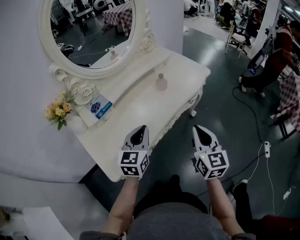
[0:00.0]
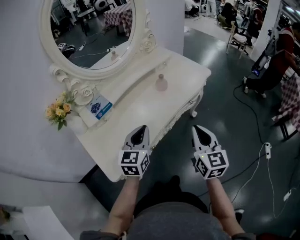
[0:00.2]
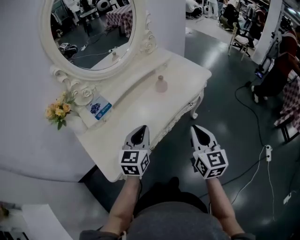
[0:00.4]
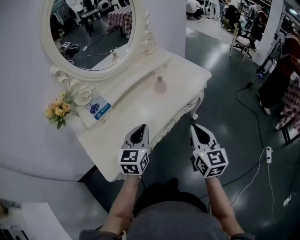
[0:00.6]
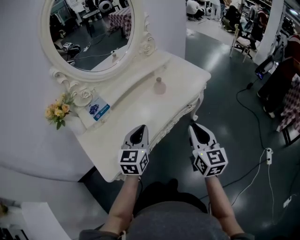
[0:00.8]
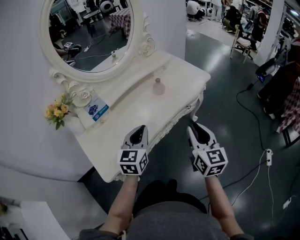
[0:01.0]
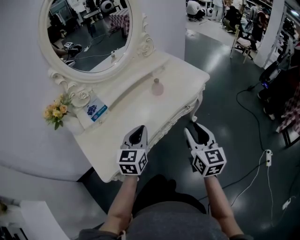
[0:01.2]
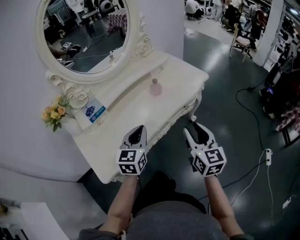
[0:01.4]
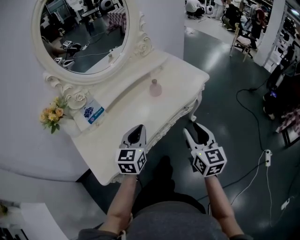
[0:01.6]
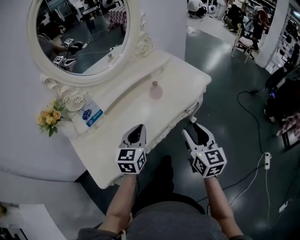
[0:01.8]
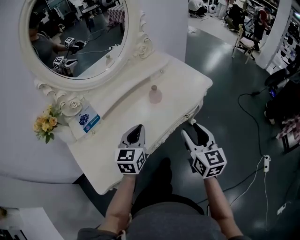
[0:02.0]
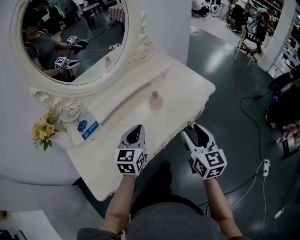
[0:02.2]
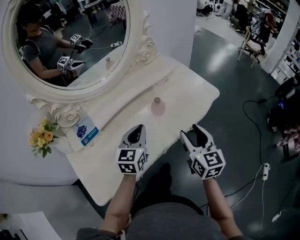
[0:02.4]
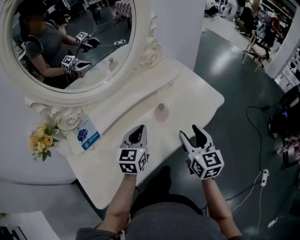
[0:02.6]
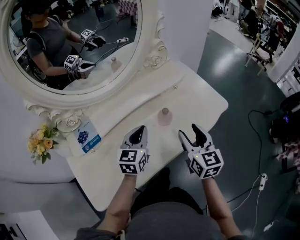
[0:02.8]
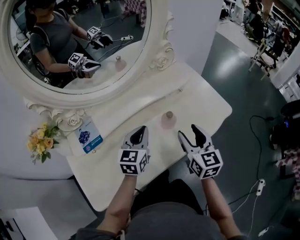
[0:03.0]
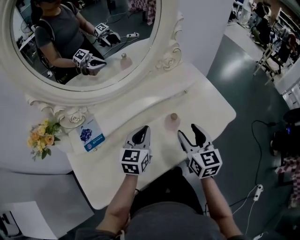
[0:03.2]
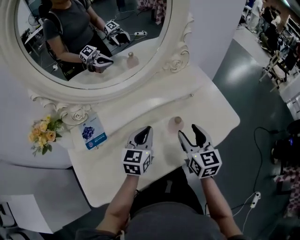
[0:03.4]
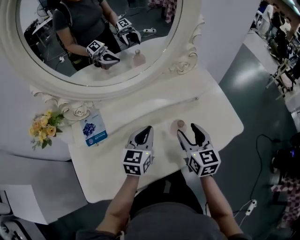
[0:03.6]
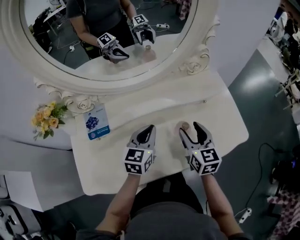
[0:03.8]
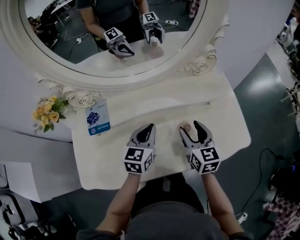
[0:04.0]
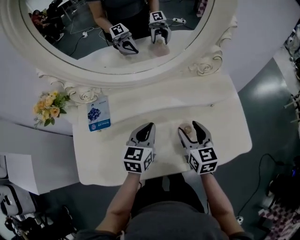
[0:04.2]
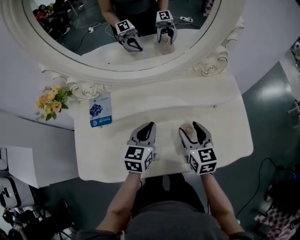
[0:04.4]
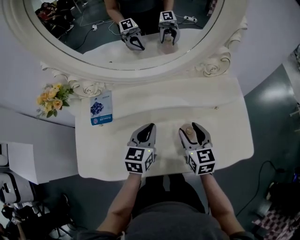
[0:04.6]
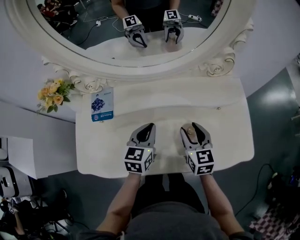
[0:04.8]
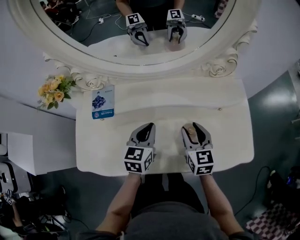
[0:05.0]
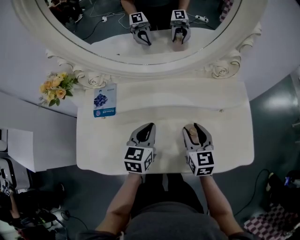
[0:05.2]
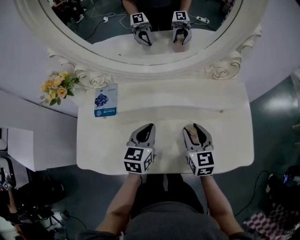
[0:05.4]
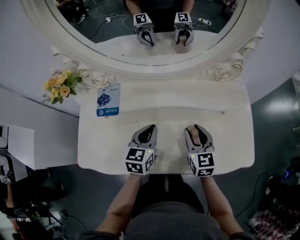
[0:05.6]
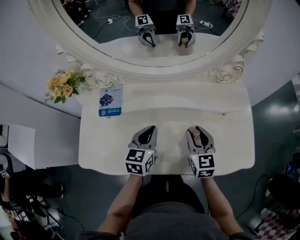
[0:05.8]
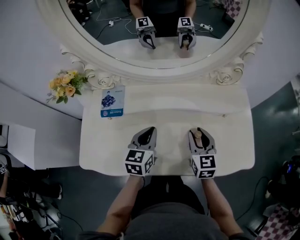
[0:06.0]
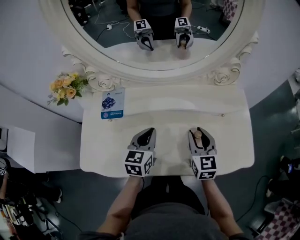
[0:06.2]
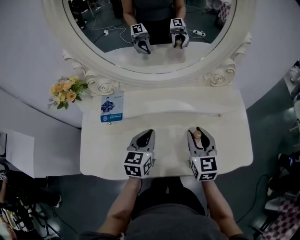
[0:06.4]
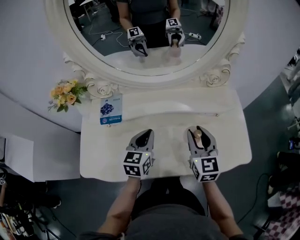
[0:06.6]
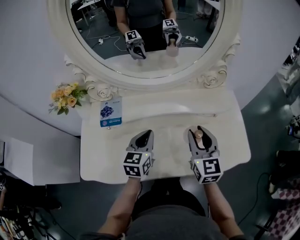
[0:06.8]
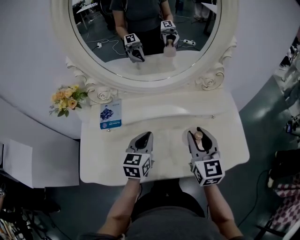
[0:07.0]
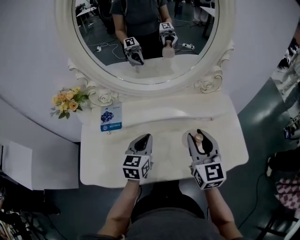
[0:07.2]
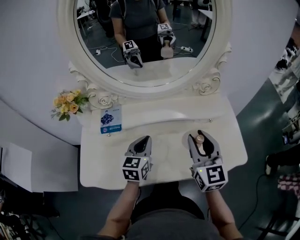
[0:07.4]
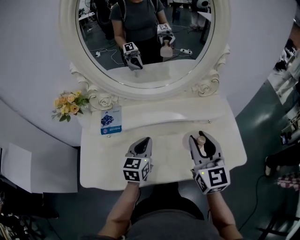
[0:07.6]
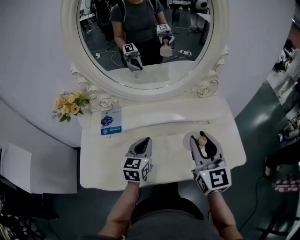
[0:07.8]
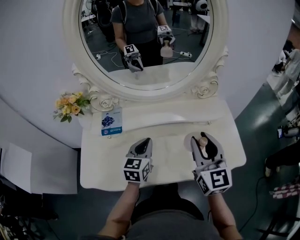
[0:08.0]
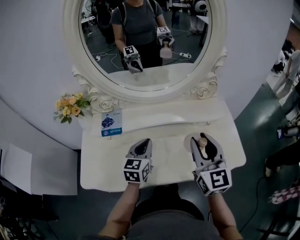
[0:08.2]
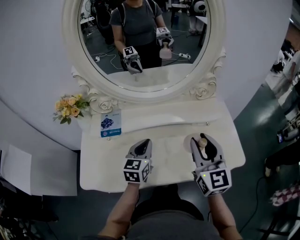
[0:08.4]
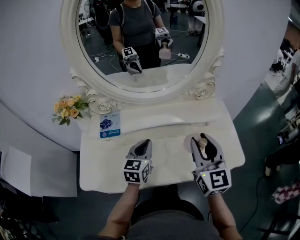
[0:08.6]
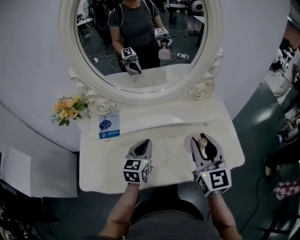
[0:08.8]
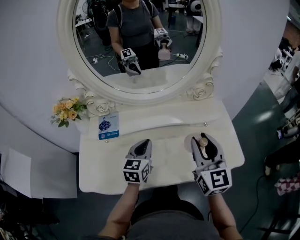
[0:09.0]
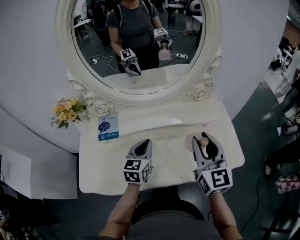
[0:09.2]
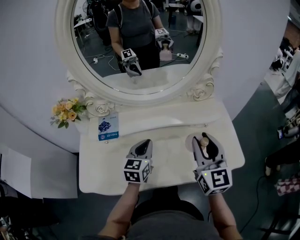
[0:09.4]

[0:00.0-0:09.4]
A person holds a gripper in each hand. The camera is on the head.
0:00.0 to 0:01.6: The right gripper shifts by some 5 cm, and opens up, while the left gripper shifts by approximately 5 cm.
0:01.6 to 0:03.2: The two grippers go roughly 25 cm forward.
0:03.2 to 0:04.8: The left gripper changes place by approximately 5 cm, and changes its angle by roughly 30 degrees. Meanwhile the right gripper shifts by roughly 15 cm, and turns by some 30 degrees.
0:04.8 to 0:06.2: The grippers move only a little.
0:06.2 to 0:07.8: The right gripper is displaced upward by approximately 15 cm.
0:07.8 to 0:09.4: The grippers move only a little.

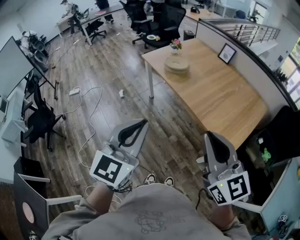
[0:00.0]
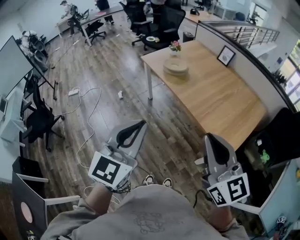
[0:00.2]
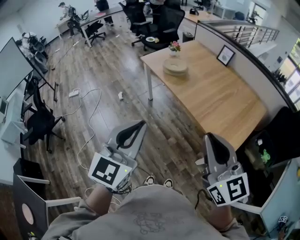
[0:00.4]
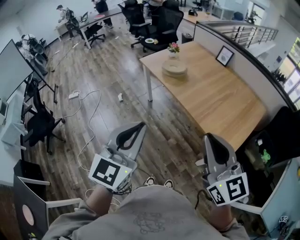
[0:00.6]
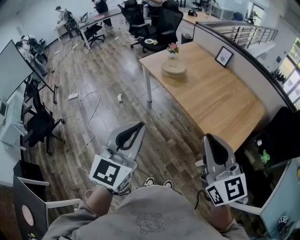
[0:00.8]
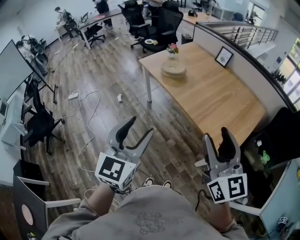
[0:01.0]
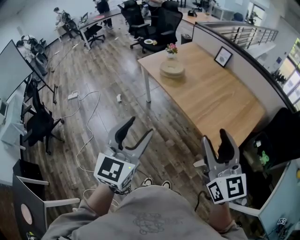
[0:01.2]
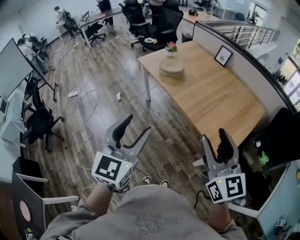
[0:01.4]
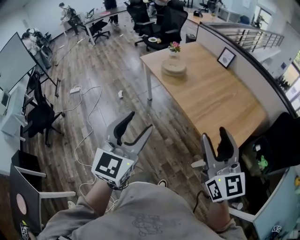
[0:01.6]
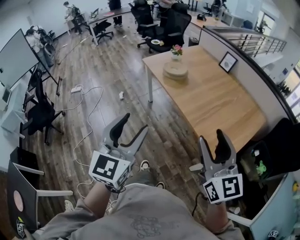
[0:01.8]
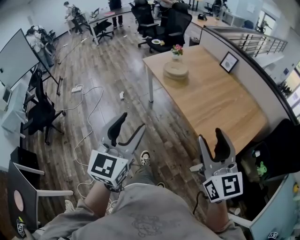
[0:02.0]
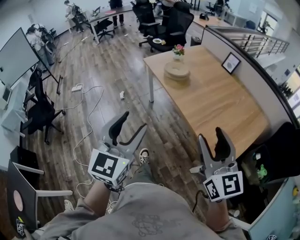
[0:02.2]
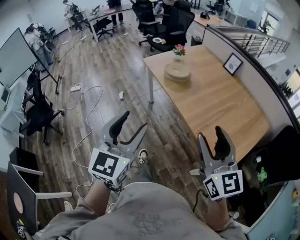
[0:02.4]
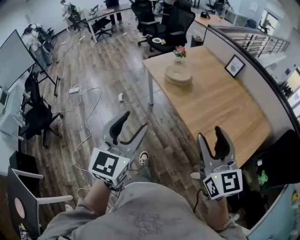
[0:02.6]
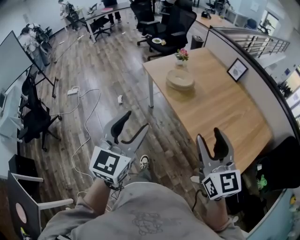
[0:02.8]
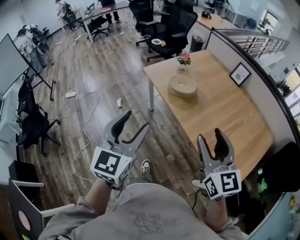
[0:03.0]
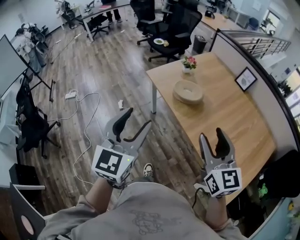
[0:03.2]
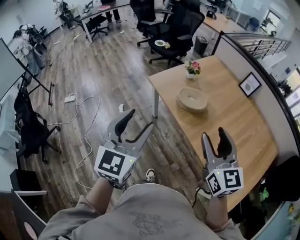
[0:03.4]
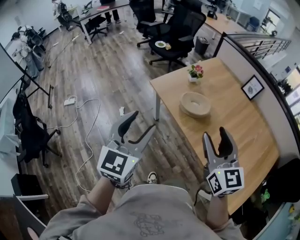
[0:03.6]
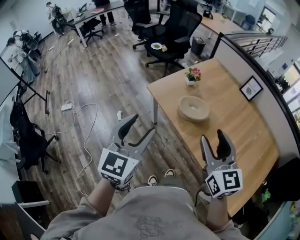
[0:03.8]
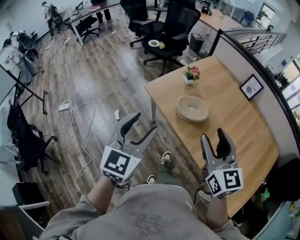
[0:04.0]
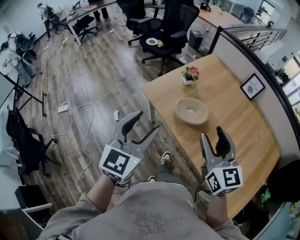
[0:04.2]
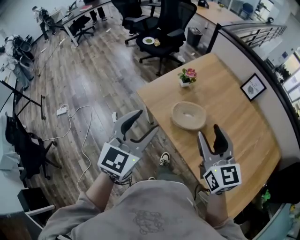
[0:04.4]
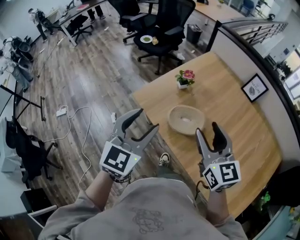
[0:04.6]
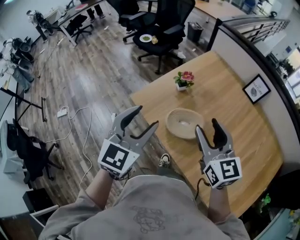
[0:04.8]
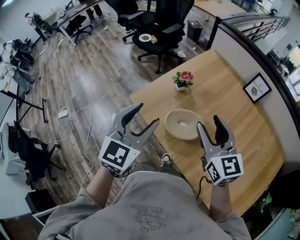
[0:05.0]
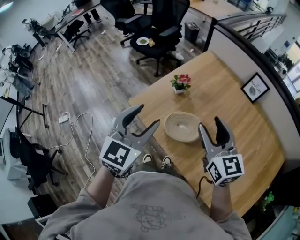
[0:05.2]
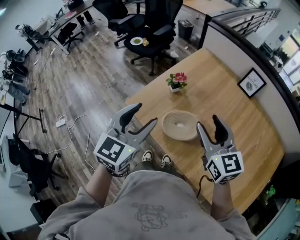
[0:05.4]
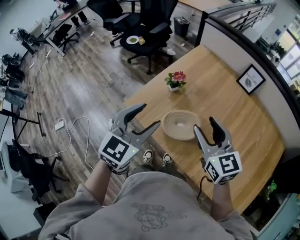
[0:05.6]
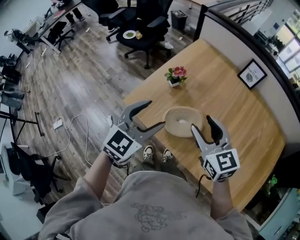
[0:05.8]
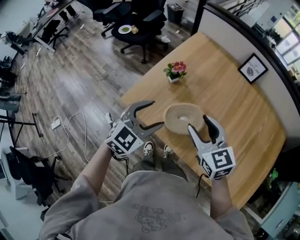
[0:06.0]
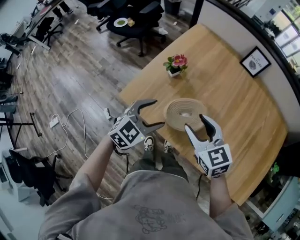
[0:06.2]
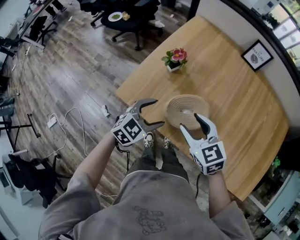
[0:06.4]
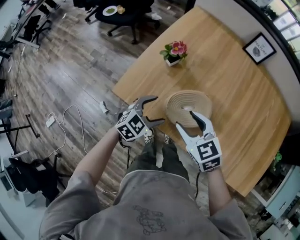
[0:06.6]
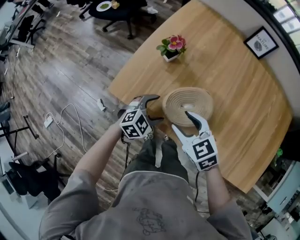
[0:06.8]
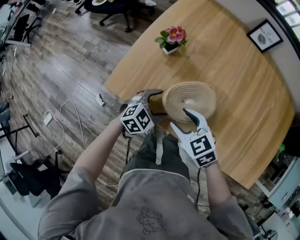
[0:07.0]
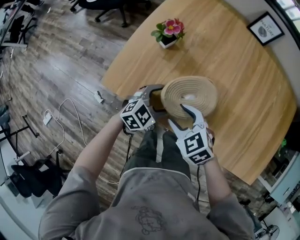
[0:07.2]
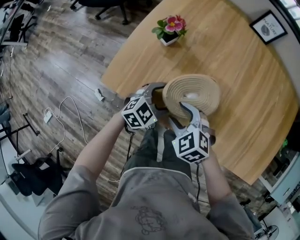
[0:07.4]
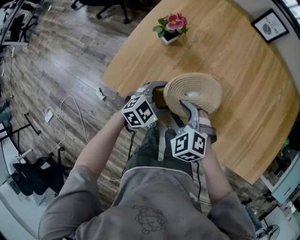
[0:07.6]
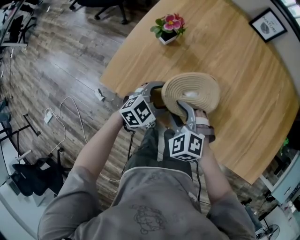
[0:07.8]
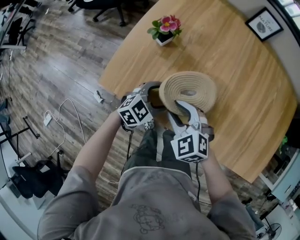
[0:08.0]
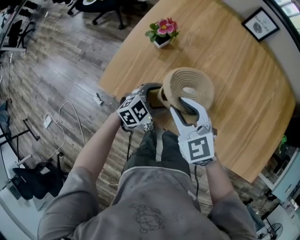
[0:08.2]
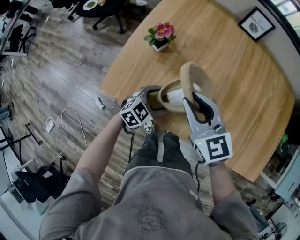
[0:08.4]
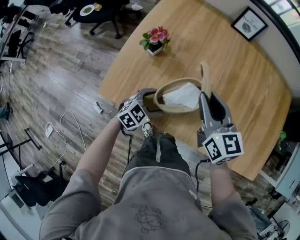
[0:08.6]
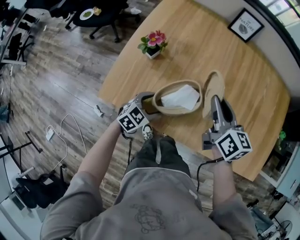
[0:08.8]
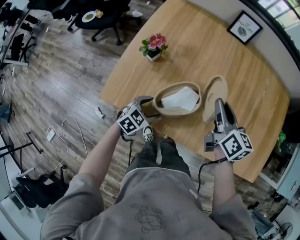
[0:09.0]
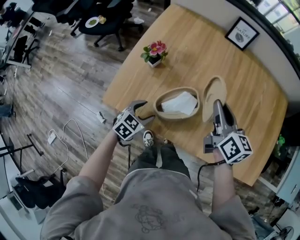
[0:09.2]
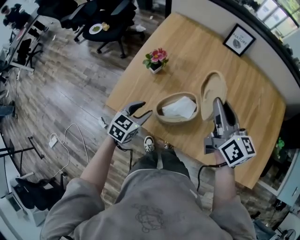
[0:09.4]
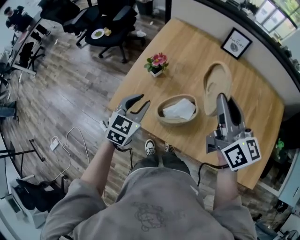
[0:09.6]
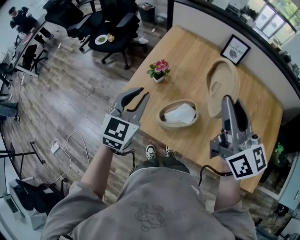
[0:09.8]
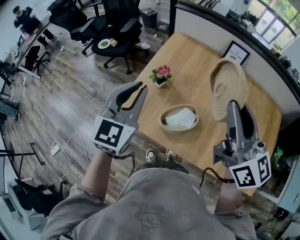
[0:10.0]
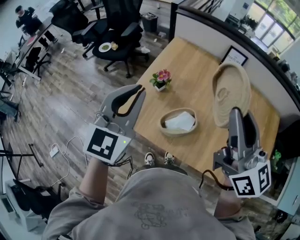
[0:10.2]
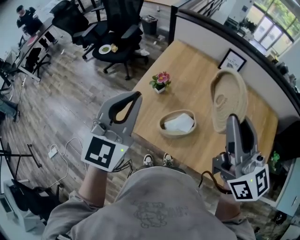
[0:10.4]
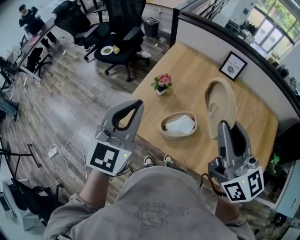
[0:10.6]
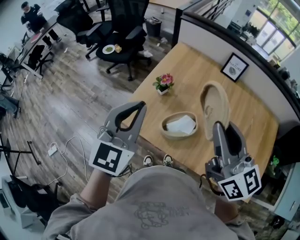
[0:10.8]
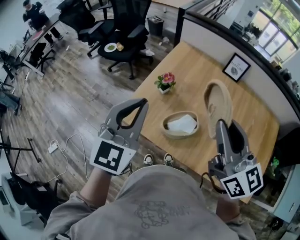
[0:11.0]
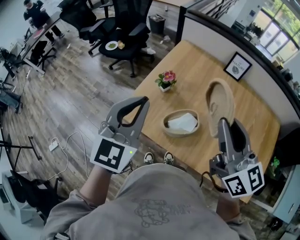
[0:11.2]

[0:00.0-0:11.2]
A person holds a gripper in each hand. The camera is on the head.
0:00.0 to 0:01.6: The left gripper ends up approximately 5 cm from where it was, and opens, while the right gripper heads to the right, covering about 10 cm, and opens its fingers.
0:01.6 to 0:03.2: The two grippers go approximately 35 cm forward.
0:03.2 to 0:04.8: The grippers both shift forward by about 35 cm.
0:04.8 to 0:06.4: The right gripper is displaced downward and to the left by some 15 cm, and turns by roughly 20 degrees. The left gripper is displaced downward by roughly 25 cm, and turns by roughly 50 degrees.
0:06.4 to 0:08.0: The grippers both shift downward by approximately 15 cm. The right gripper swivels roughly 20 degrees.
0:08.0 to 0:09.6: The right gripper moves upward and to the right, roughly 35 cm, and tips its fingers upward by about 40 degrees. The left gripper travels upward by roughly 20 cm, changes its angle by some 30 degrees, and closes.
0:09.6 to 0:11.2: The left gripper moves upward, about 25 cm, and turns by approximately 20 degrees; the right gripper travels upward and backward by about 10 cm.

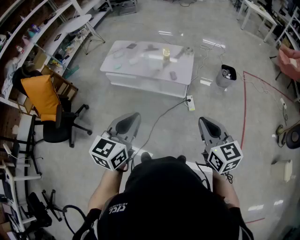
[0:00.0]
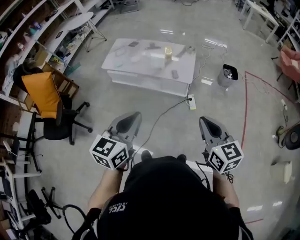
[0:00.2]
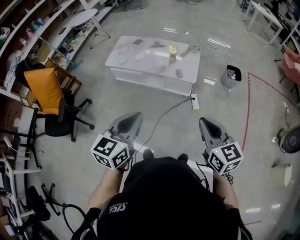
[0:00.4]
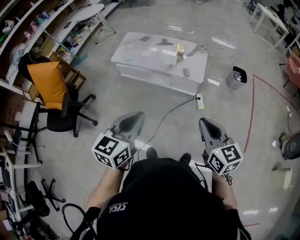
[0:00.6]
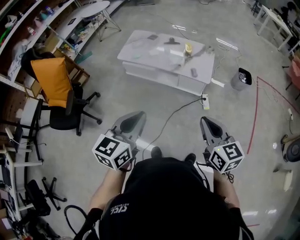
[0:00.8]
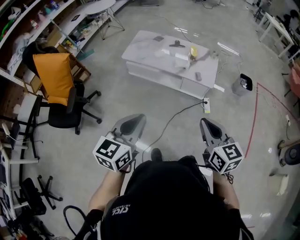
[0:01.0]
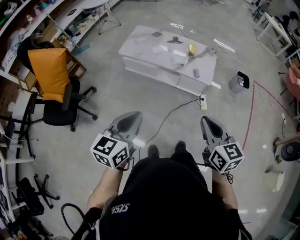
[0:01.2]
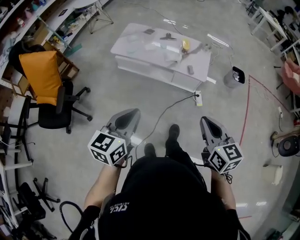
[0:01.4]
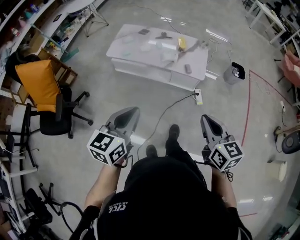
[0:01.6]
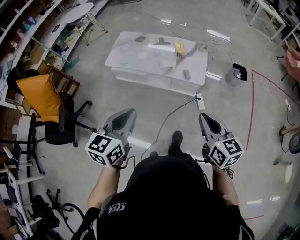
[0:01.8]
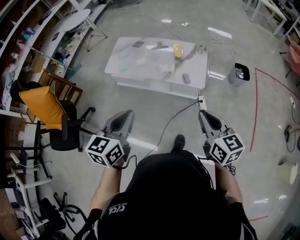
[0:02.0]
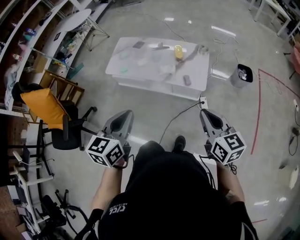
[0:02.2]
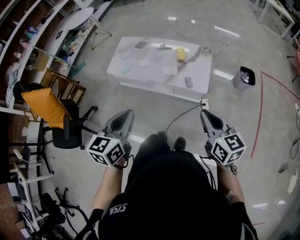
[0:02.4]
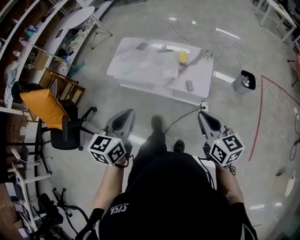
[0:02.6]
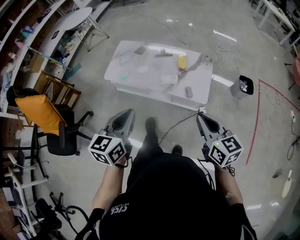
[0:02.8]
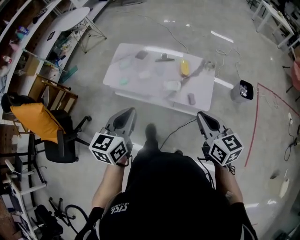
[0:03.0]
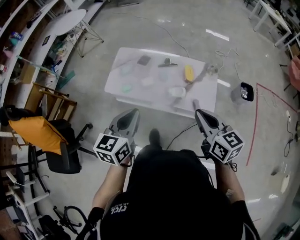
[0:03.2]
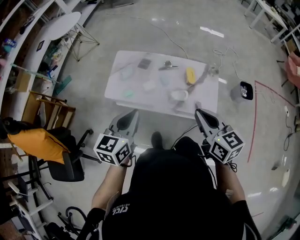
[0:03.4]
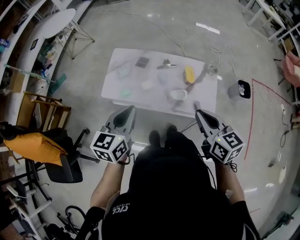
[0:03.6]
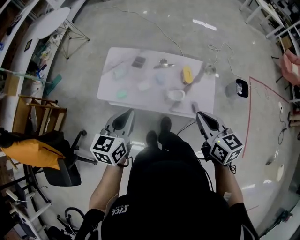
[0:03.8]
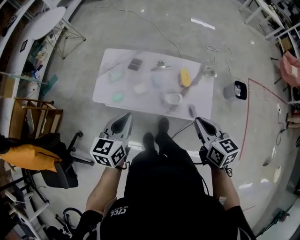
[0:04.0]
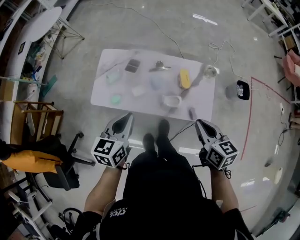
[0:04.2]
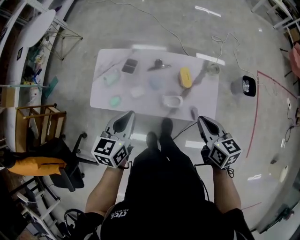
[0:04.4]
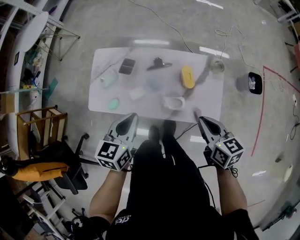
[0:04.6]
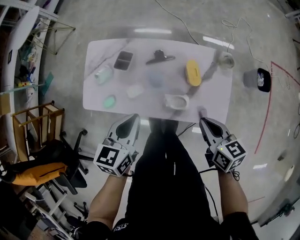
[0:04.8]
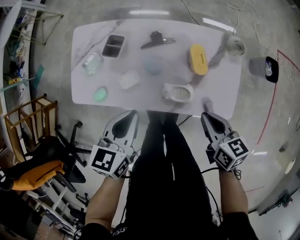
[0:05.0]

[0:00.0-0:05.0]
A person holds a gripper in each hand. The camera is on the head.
0:00.0 to 0:01.6: Both grippers move to the left, roughly 15 cm.
0:01.6 to 0:03.4: The pair of grippers is taken forward, approximately 40 cm.
0:03.4 to 0:05.0: Both grippers travel together downward and forward, about 35 cm. The right gripper swivels some 30 degrees.
